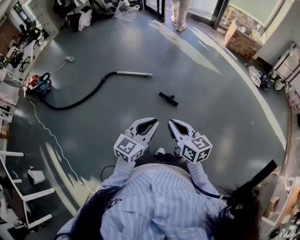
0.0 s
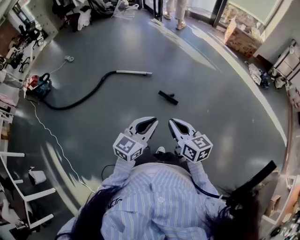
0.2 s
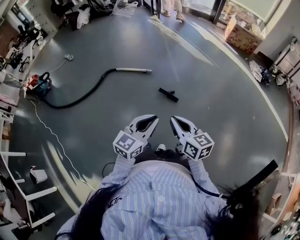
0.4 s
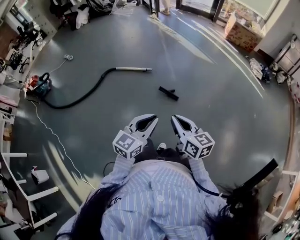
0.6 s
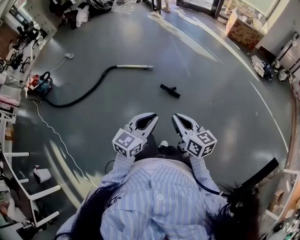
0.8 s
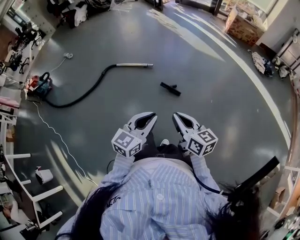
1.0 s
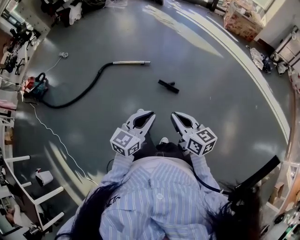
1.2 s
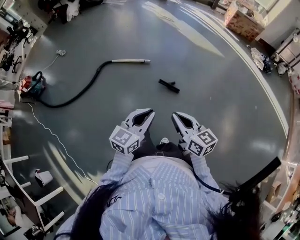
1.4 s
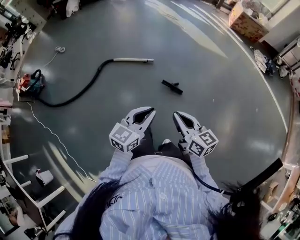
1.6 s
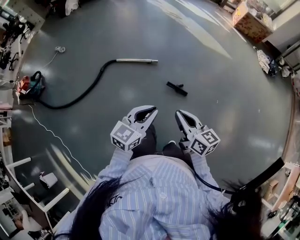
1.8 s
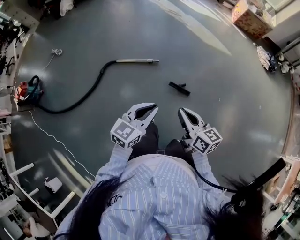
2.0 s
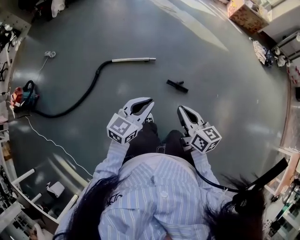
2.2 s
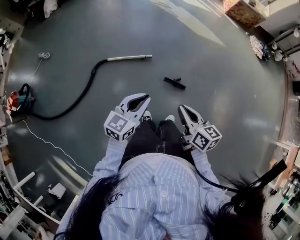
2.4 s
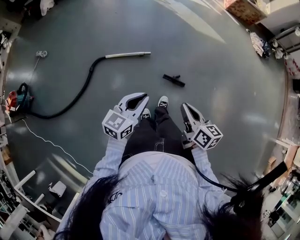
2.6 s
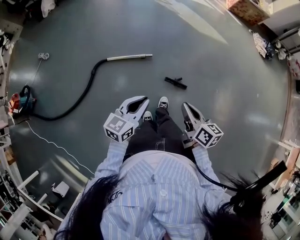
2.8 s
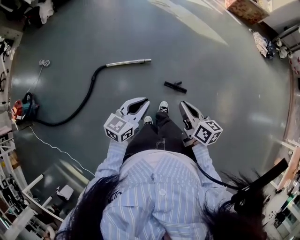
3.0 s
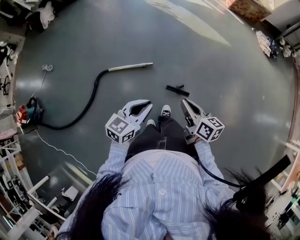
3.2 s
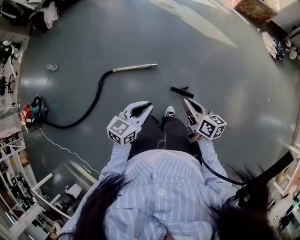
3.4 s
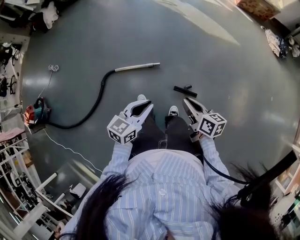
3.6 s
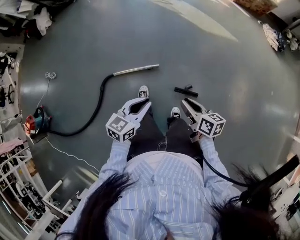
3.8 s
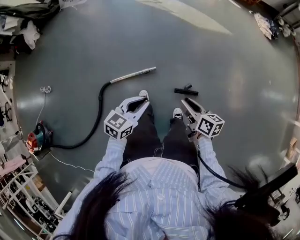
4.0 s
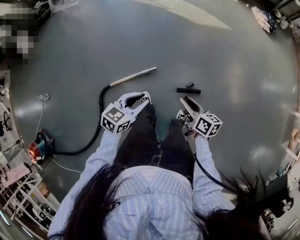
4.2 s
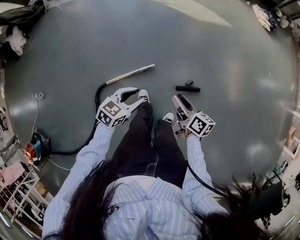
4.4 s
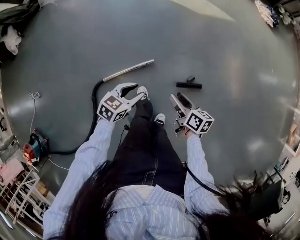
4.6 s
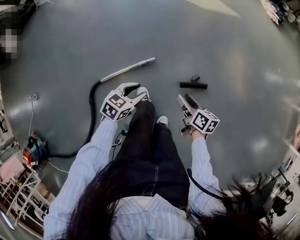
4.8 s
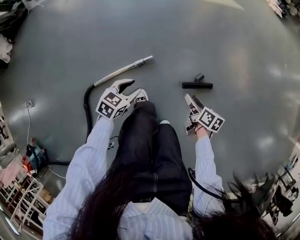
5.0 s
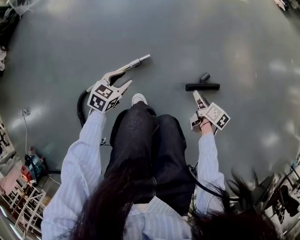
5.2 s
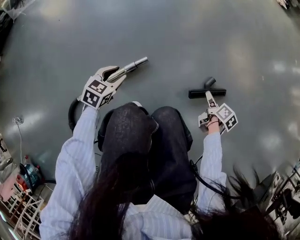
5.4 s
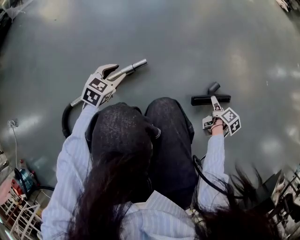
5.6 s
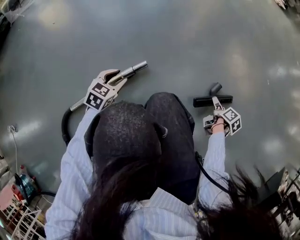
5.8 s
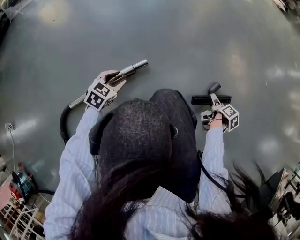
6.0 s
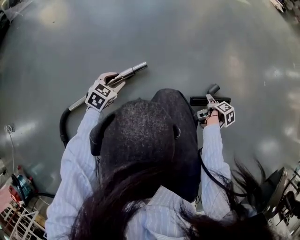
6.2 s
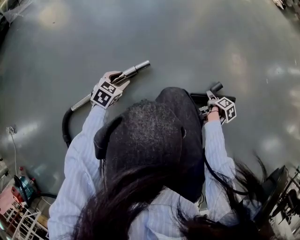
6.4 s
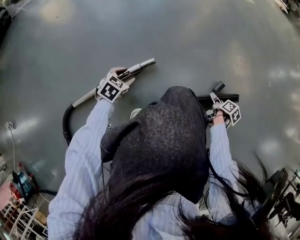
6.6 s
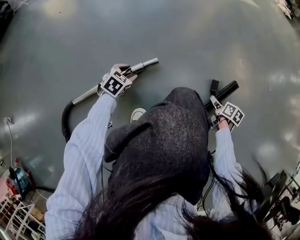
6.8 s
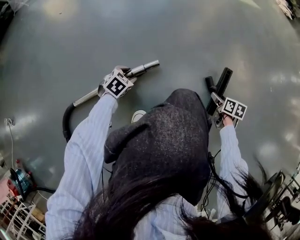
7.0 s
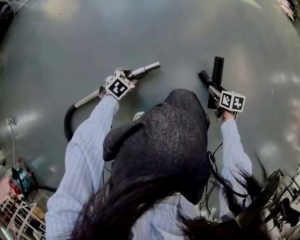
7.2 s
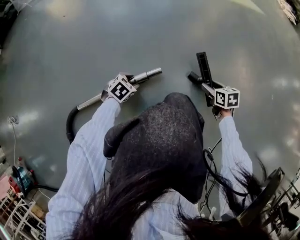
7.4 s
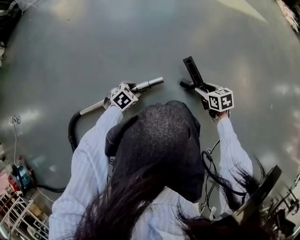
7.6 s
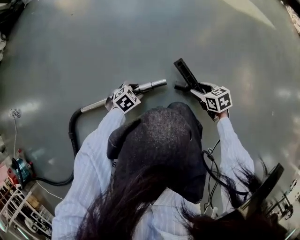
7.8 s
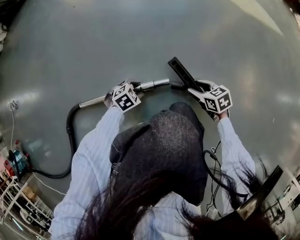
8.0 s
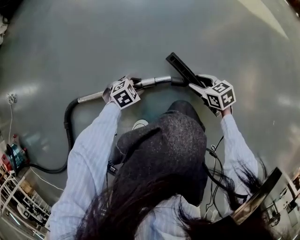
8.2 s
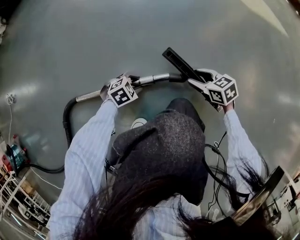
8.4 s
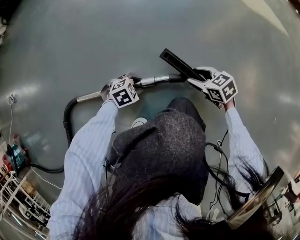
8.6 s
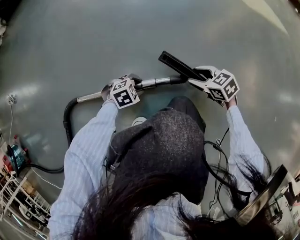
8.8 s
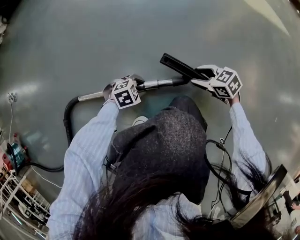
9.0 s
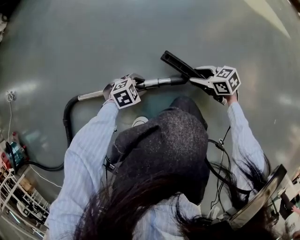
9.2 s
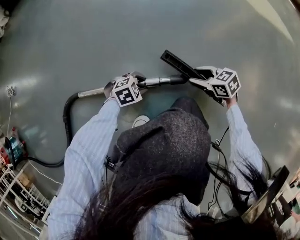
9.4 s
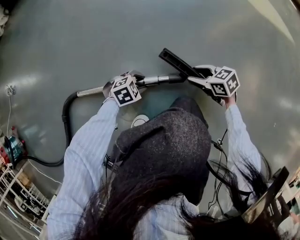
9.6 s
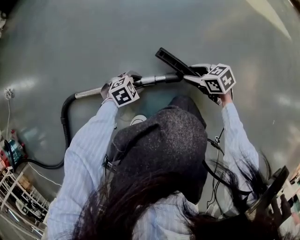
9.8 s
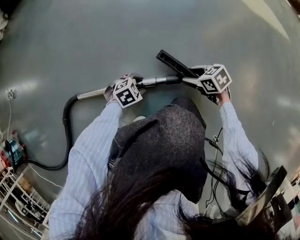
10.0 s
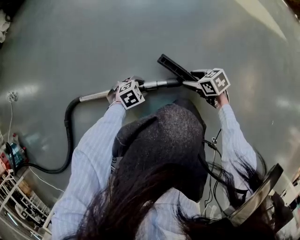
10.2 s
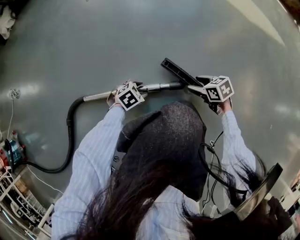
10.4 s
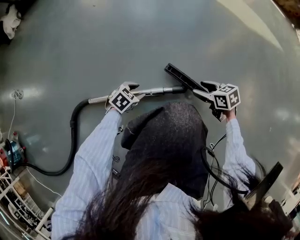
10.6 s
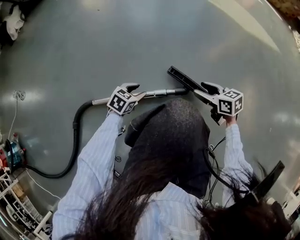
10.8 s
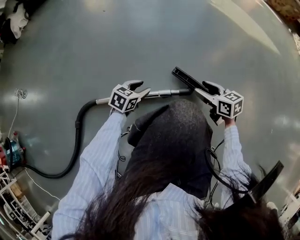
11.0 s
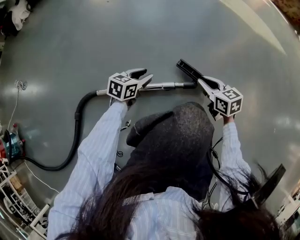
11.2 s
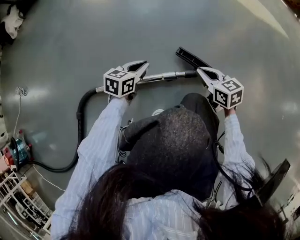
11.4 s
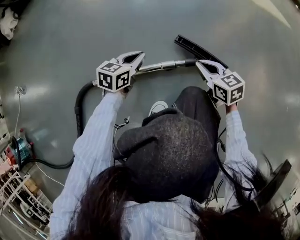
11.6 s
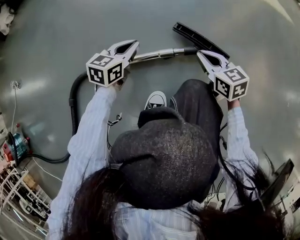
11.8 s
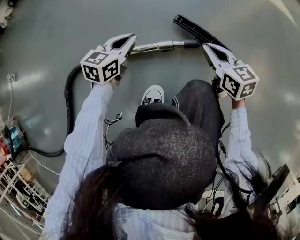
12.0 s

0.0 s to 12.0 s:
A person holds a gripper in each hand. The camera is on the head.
0.0 to 1.6 s: The right gripper travels forward by approximately 15 cm. Meanwhile the left gripper is displaced forward and to the left by approximately 15 cm.
1.6 to 3.0 s: The right gripper shifts approximately 25 cm forward, and swivels about 30 degrees. The left gripper moves forward and to the left, roughly 30 cm.
3.0 to 4.4 s: The left gripper changes place by about 30 cm, swivels some 40 degrees, and opens, while the right gripper shifts by some 30 cm, turns by about 30 degrees, and opens up.
4.4 to 6.0 s: The two grippers go approximately 60 cm downward. The left gripper changes its angle by approximately 20 degrees; the right gripper angles its fingers downward, by approximately 30 degrees, and opens its fingers.
6.0 to 7.6 s: The left gripper goes approximately 10 cm downward. Meanwhile the right gripper ends up some 25 cm from where it was, and rotates around the line of its fingers by roughly 90 degrees, counterclockwise from behind.
7.6 to 9.0 s: The right gripper shifts by roughly 10 cm, and rotates approximately 40 degrees.
9.0 to 10.4 s: There are only small adjustments of the grippers.
10.4 to 12.0 s: The two grippers go about 10 cm upward. The right gripper swivels approximately 30 degrees, and closes its fingers. The left gripper tilts its fingers some 30 degrees upward, and closes.

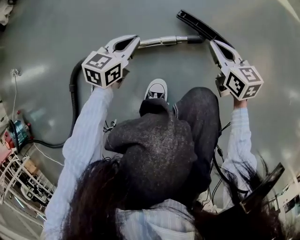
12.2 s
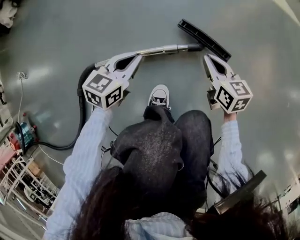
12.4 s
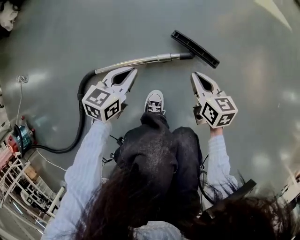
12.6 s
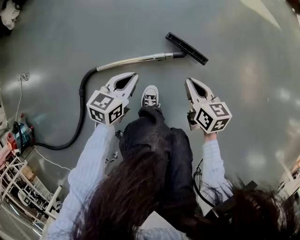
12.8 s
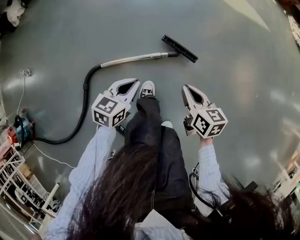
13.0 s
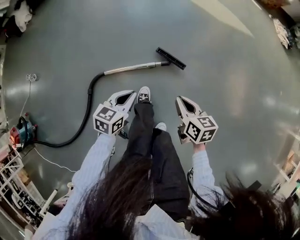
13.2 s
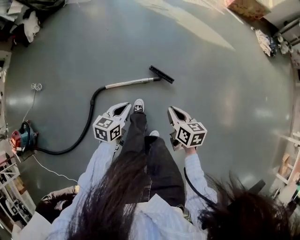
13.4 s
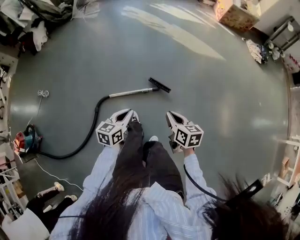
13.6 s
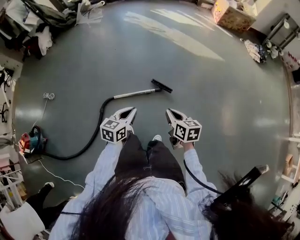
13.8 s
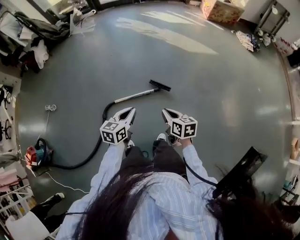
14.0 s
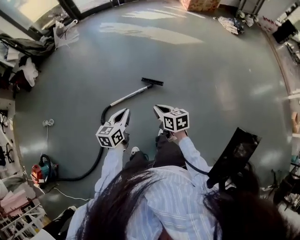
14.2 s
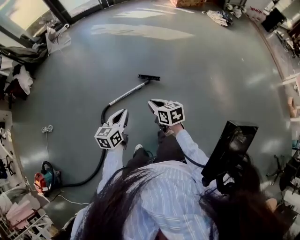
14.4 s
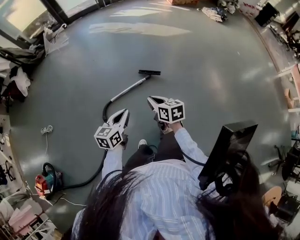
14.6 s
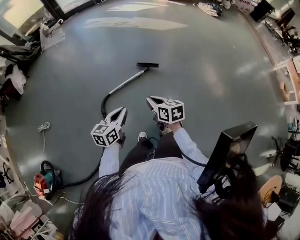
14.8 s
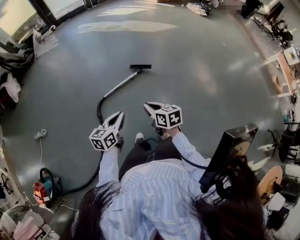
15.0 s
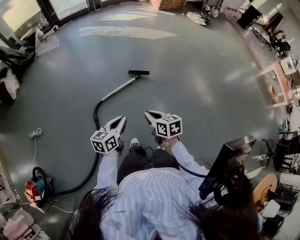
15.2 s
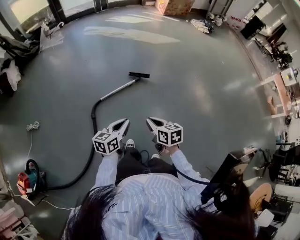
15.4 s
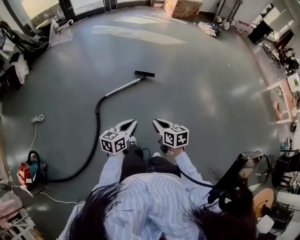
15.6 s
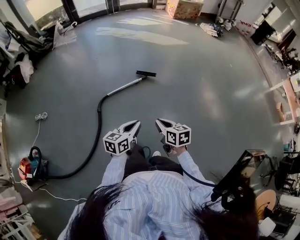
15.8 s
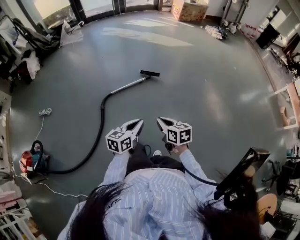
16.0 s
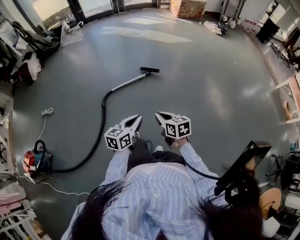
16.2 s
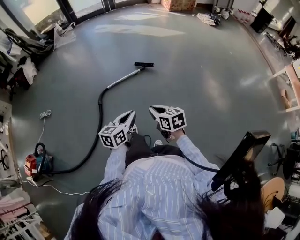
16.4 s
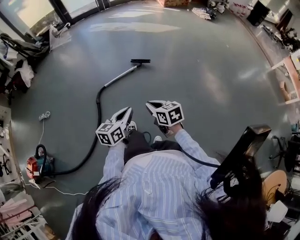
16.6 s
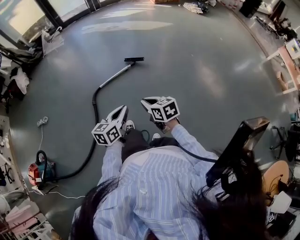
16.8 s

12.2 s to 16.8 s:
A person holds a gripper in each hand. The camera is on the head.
12.2 to 13.8 s: The grippers both shift upward and backward by some 70 cm.
13.8 to 15.2 s: The grippers both shift backward and to the left by some 30 cm. The left gripper swivels some 20 degrees.
15.2 to 16.8 s: The two grippers go roughly 20 cm backward and to the right.

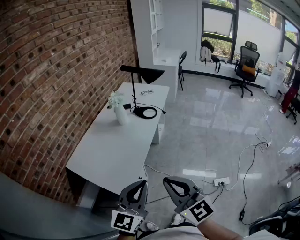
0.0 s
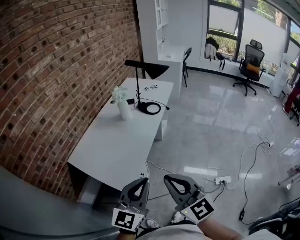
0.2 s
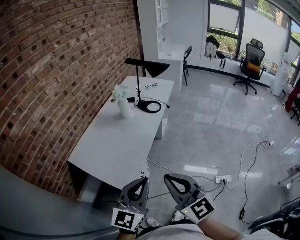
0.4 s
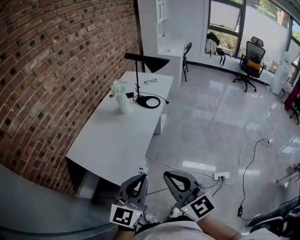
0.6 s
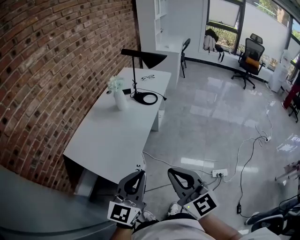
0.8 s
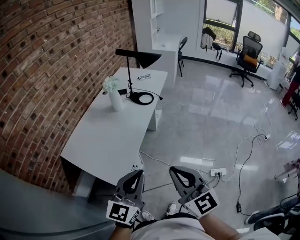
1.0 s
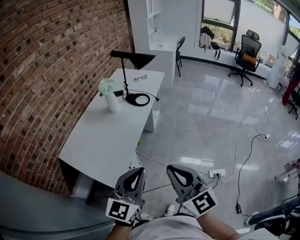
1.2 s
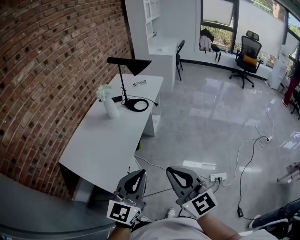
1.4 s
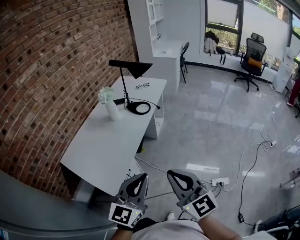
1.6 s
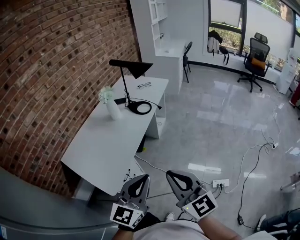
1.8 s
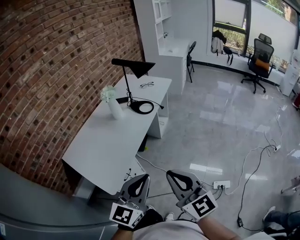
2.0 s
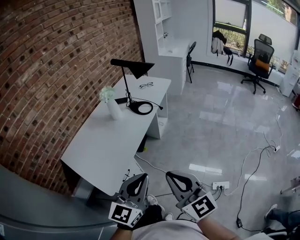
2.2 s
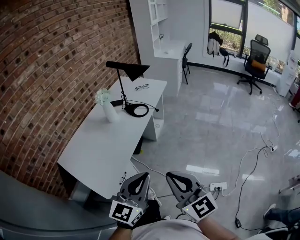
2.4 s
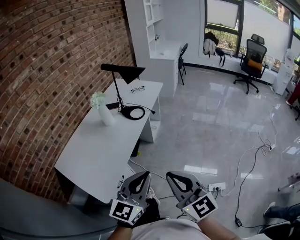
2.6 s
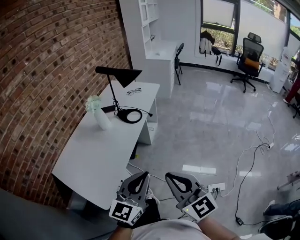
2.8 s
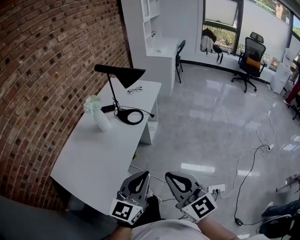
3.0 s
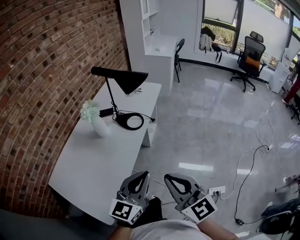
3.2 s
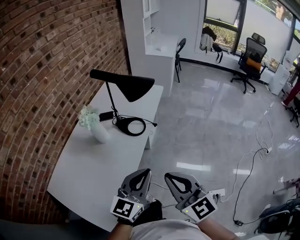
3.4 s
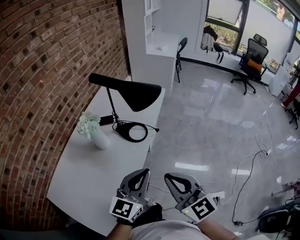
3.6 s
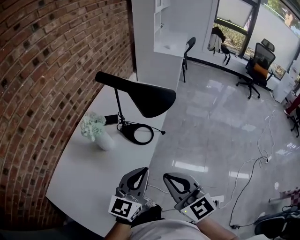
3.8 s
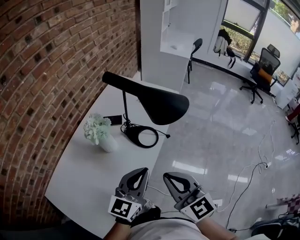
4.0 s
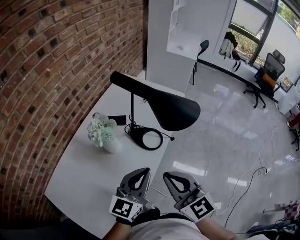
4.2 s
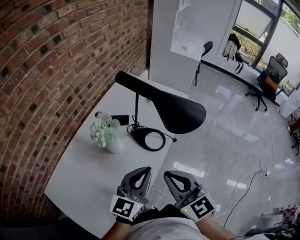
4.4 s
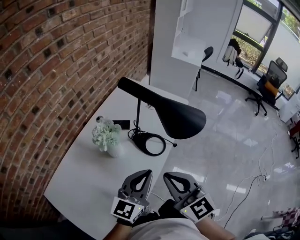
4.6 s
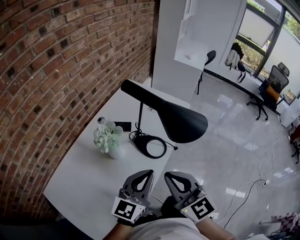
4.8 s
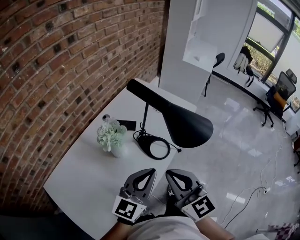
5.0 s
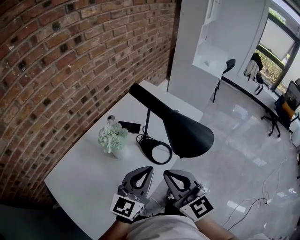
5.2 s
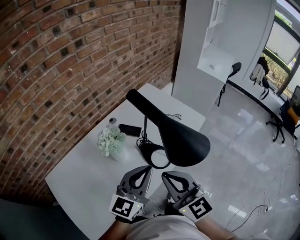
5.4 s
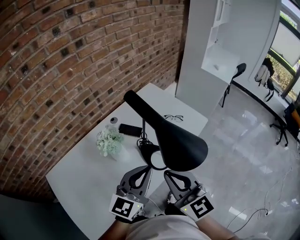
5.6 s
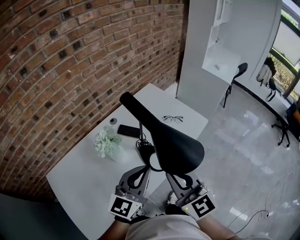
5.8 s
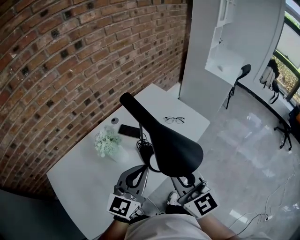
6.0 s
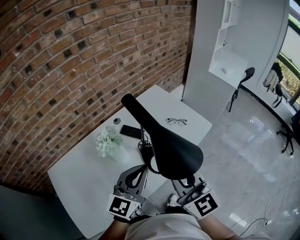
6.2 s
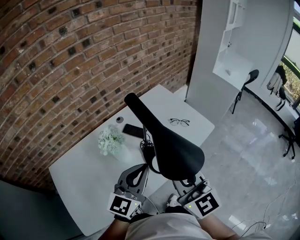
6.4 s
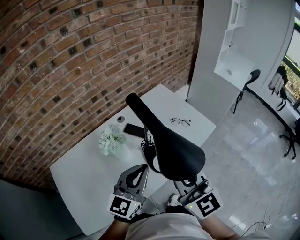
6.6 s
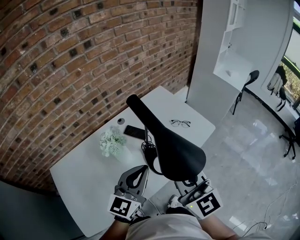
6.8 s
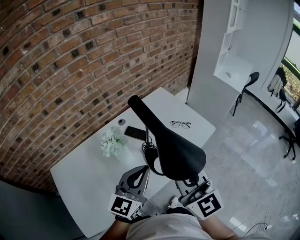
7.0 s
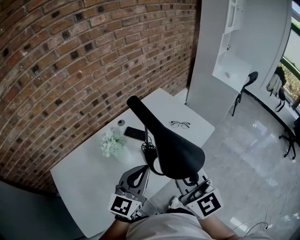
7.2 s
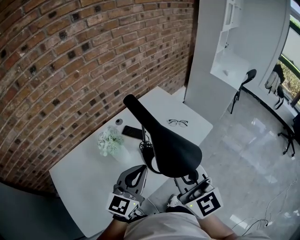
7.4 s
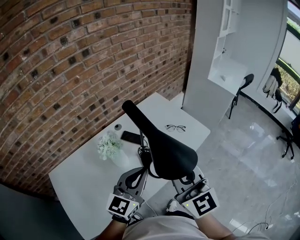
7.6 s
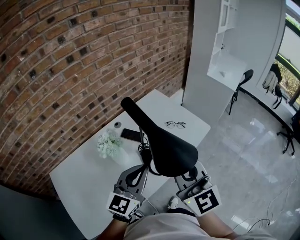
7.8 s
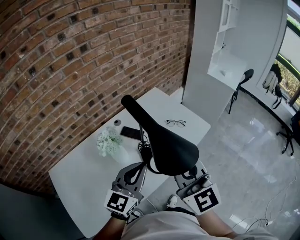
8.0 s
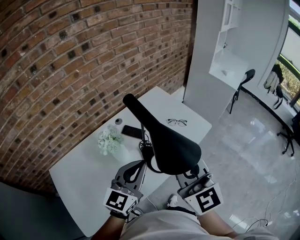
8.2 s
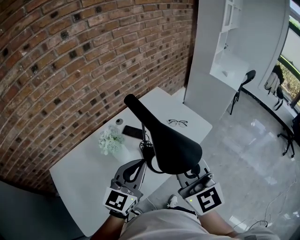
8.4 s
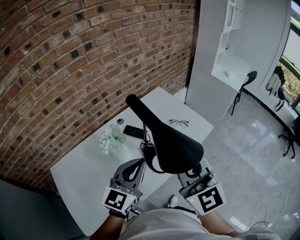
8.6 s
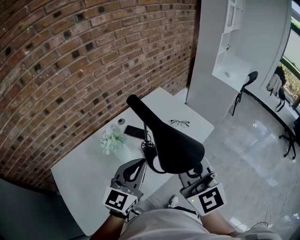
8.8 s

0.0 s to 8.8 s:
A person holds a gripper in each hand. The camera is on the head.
0.0 to 1.4 s: The grippers both shift to the right by approximately 10 cm.
1.4 to 3.0 s: The right gripper heads forward, covering approximately 15 cm. The left gripper is displaced forward and to the right by about 15 cm.
3.0 to 4.4 s: The right gripper travels forward and to the left by approximately 35 cm. The left gripper moves forward, approximately 30 cm.
4.4 to 5.8 s: The right gripper shifts some 15 cm forward and to the right. The left gripper shifts roughly 10 cm forward.
5.8 to 7.4 s: The right gripper travels upward by about 5 cm.
7.4 to 8.8 s: The grippers make only small movements.
